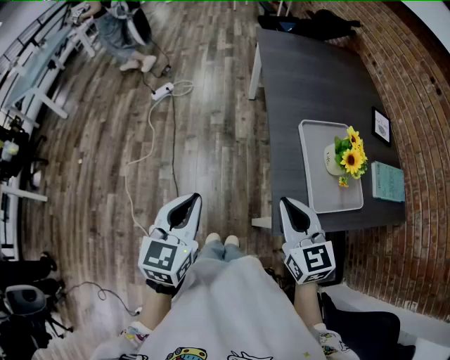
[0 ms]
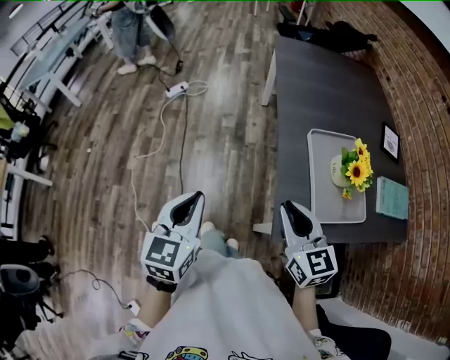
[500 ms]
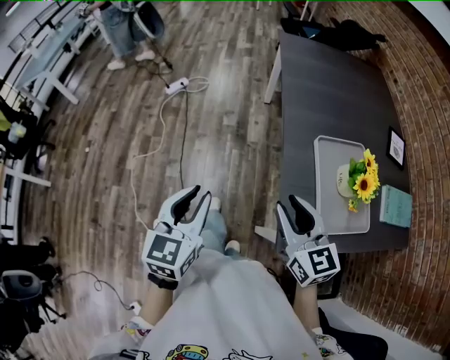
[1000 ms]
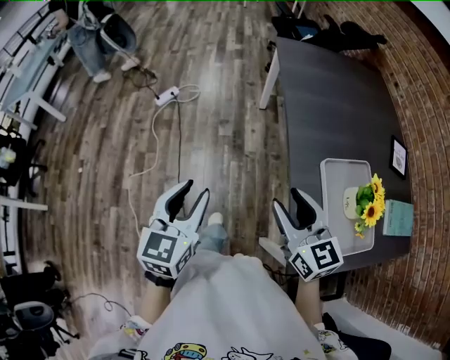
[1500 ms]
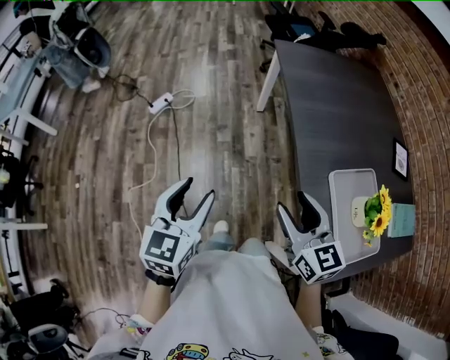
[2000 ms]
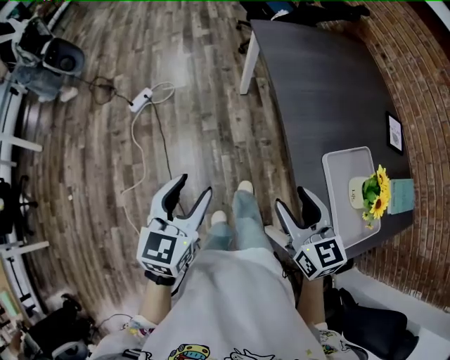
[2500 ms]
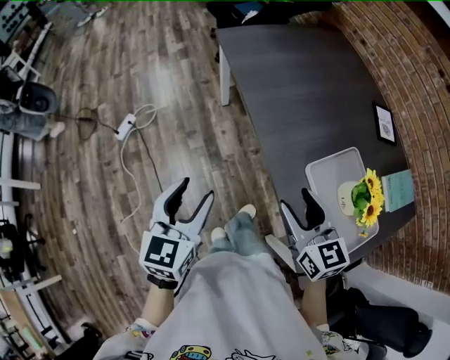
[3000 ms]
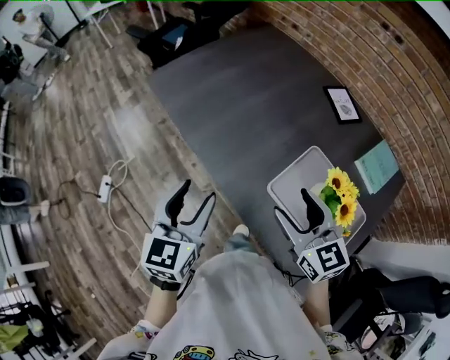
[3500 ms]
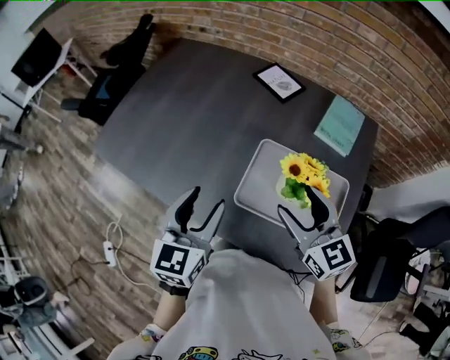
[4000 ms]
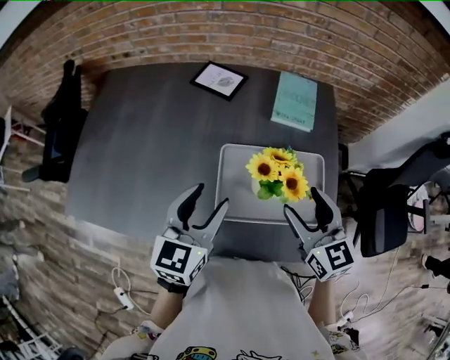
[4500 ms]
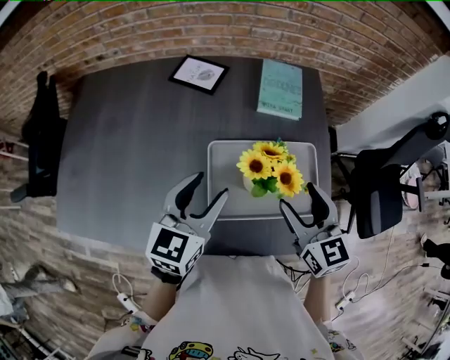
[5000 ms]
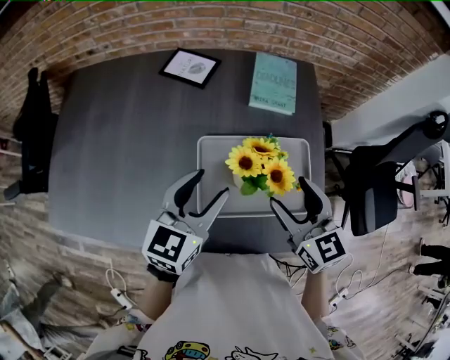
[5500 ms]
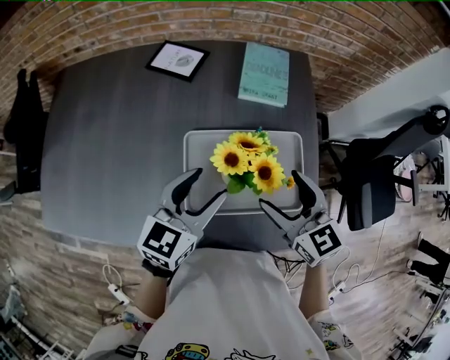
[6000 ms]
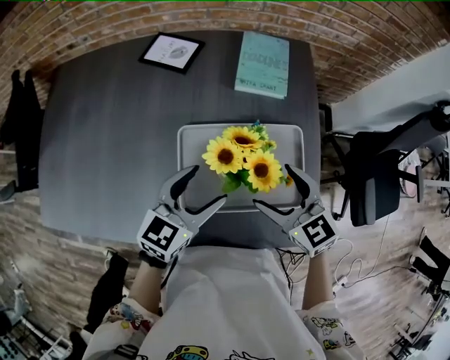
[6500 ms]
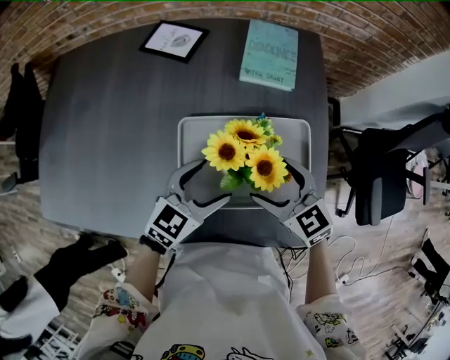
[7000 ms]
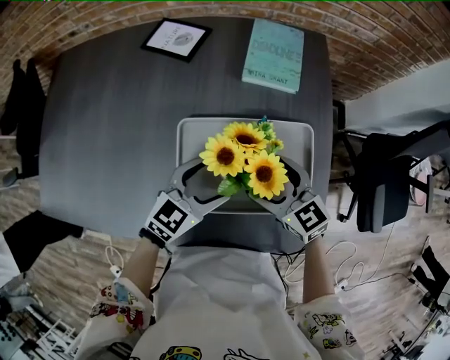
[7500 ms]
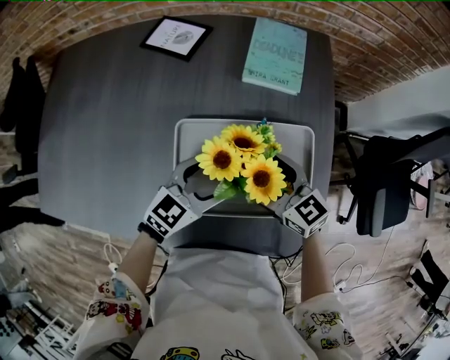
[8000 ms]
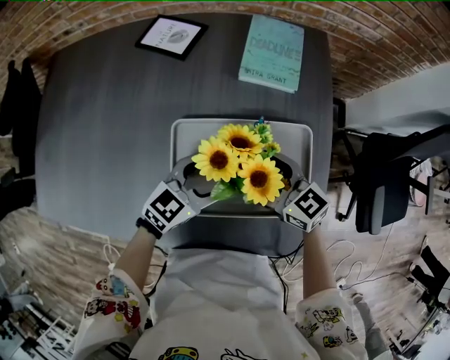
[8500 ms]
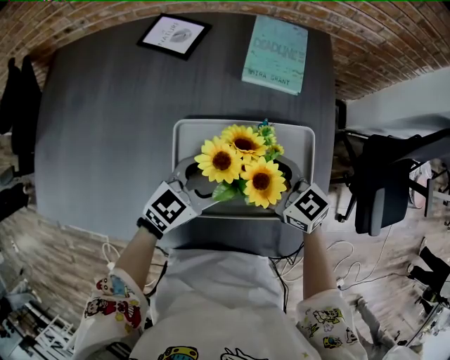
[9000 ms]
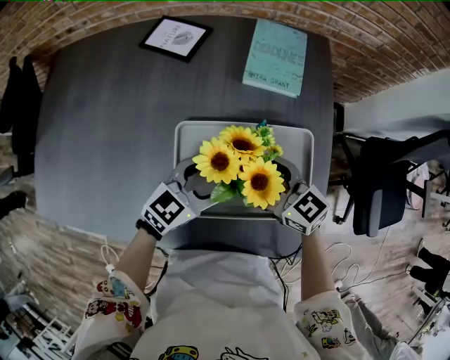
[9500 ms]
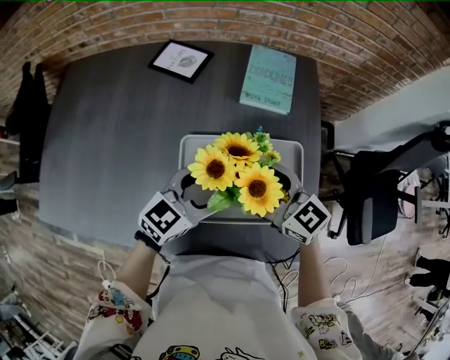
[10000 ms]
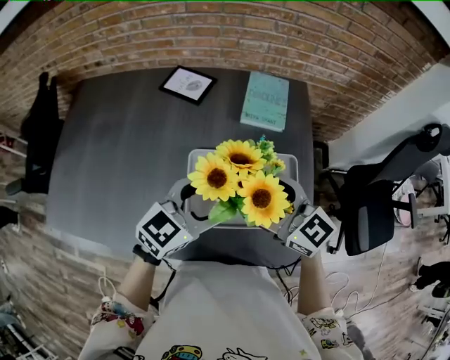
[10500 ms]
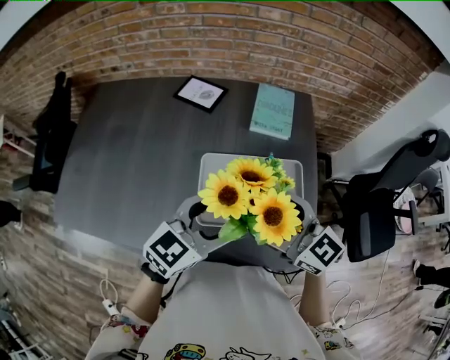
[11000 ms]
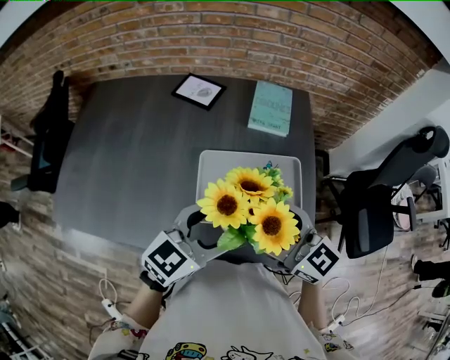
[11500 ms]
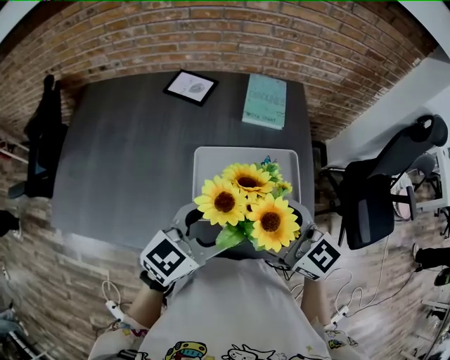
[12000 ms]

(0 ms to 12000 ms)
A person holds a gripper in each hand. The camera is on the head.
0 ms - 2000 ms: The left gripper travels forward by roughly 25 cm, and opens its fingers, while the right gripper shifts some 25 cm forward and to the left, and opens.
2000 ms - 4000 ms: The right gripper shifts by some 30 cm, and rotates some 50 degrees. The left gripper ends up some 40 cm from where it was, and rotates roughly 60 degrees.
4000 ms - 6000 ms: The left gripper shifts by roughly 20 cm, and changes its angle by about 40 degrees. The right gripper changes place by roughly 10 cm, and changes its angle by some 20 degrees.
6000 ms - 8000 ms: Both grippers travel together downward, about 10 cm.
8000 ms - 10000 ms: The two grippers go roughly 5 cm upward.
10000 ms - 12000 ms: The two grippers go about 15 cm backward and upward.

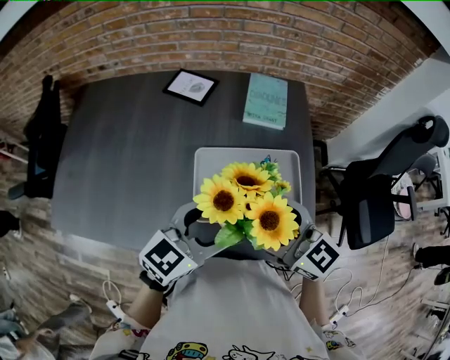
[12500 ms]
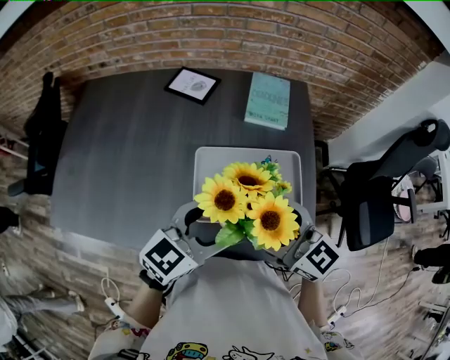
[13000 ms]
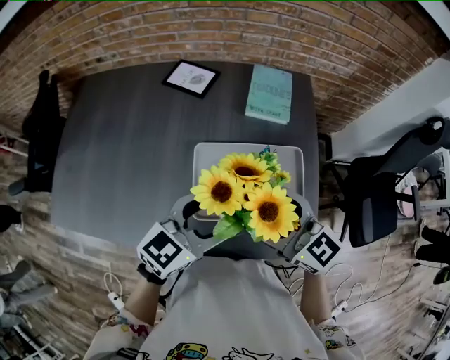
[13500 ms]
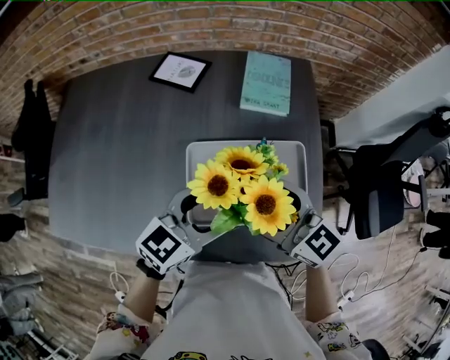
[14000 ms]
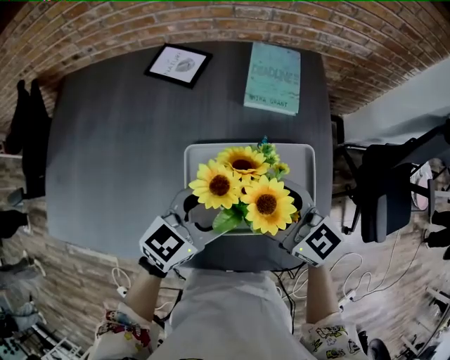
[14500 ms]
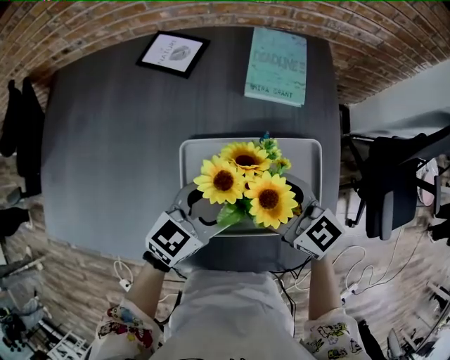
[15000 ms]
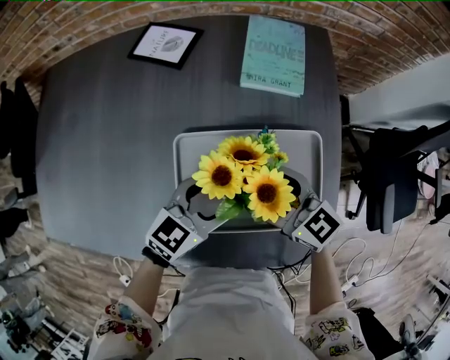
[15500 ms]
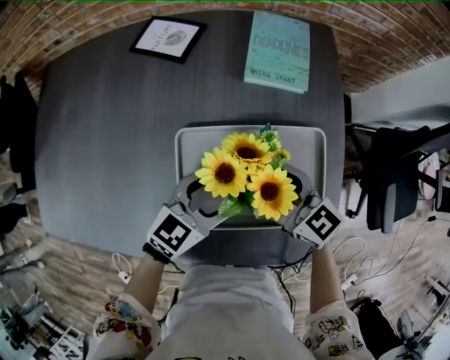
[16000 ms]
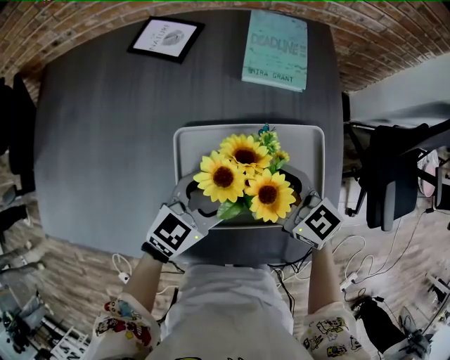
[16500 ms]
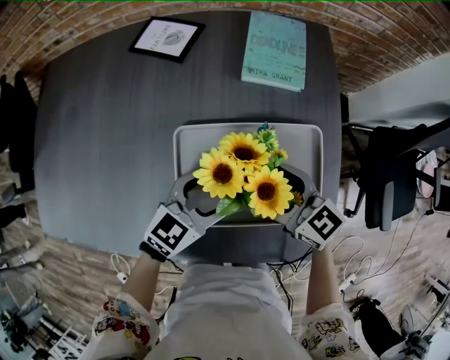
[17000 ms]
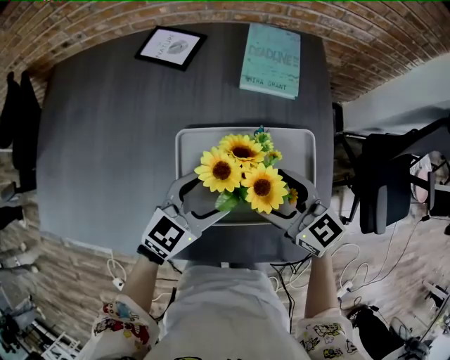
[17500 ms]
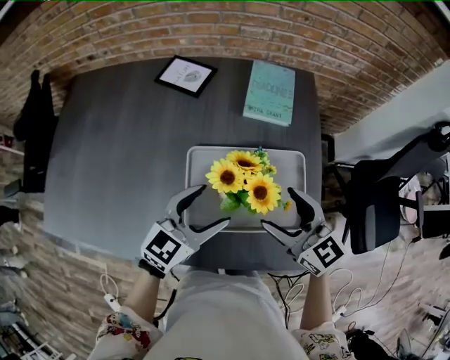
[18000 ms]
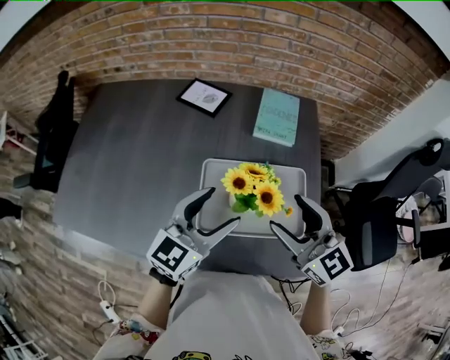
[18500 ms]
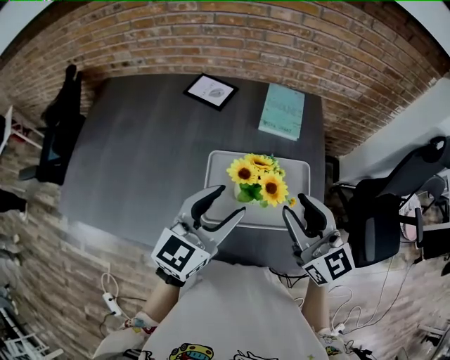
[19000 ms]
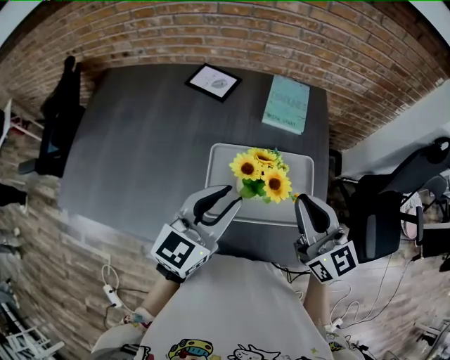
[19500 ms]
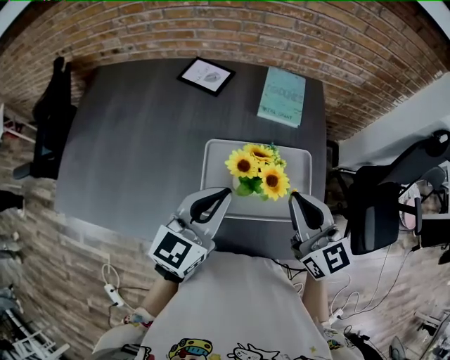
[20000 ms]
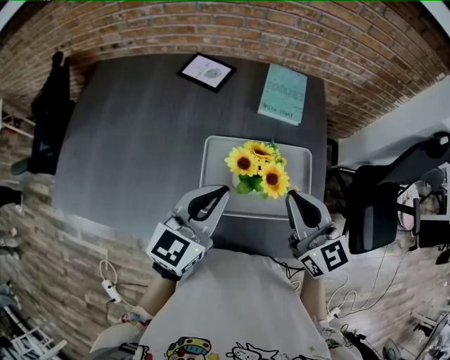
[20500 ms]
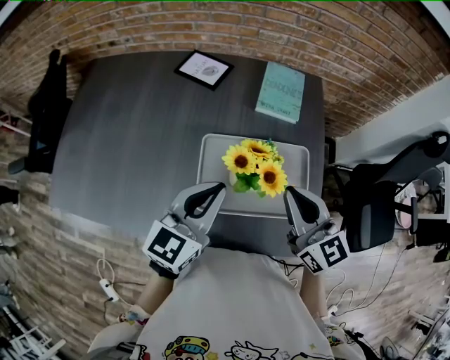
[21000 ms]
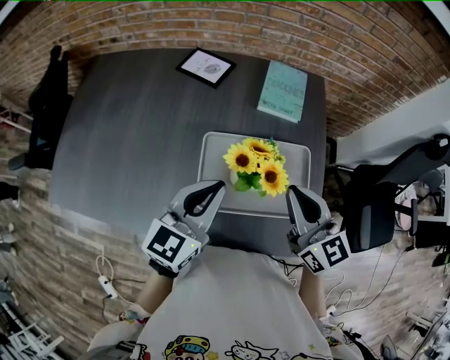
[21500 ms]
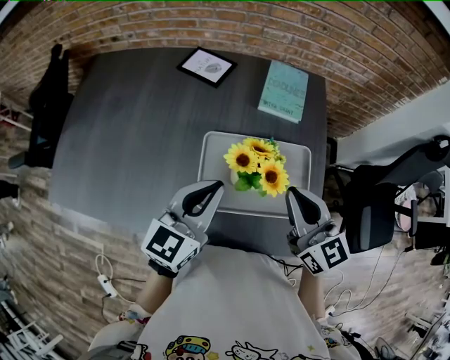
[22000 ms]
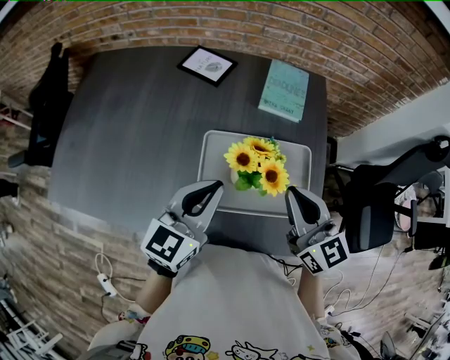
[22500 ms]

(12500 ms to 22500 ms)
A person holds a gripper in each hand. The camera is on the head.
12500 ms - 14500 ms: The two grippers go about 15 cm forward and downward.
14500 ms - 16500 ms: The two grippers go roughly 10 cm downward.
16500 ms - 18500 ms: The two grippers go approximately 20 cm upward. The left gripper turns by approximately 30 degrees. Meanwhile the right gripper turns by roughly 20 degrees.
18500 ms - 20500 ms: The right gripper closes, while the left gripper closes.
20500 ms - 22500 ms: Both grippers stay put.

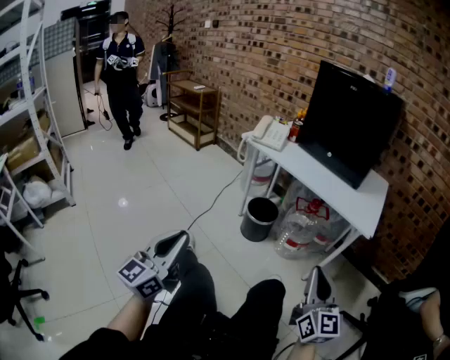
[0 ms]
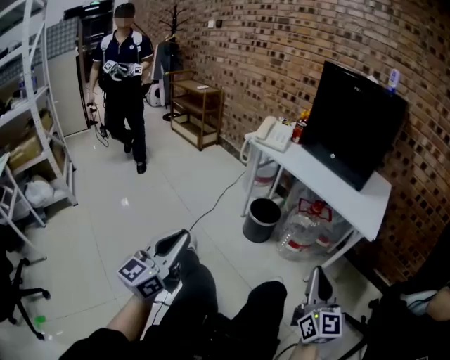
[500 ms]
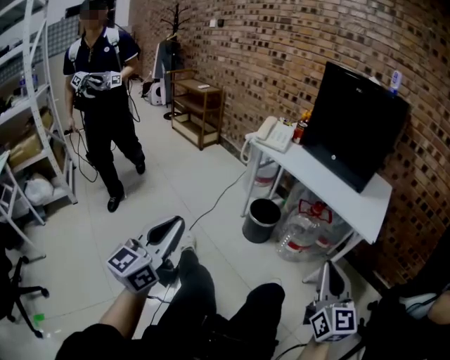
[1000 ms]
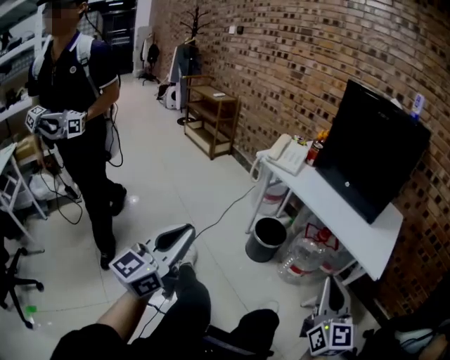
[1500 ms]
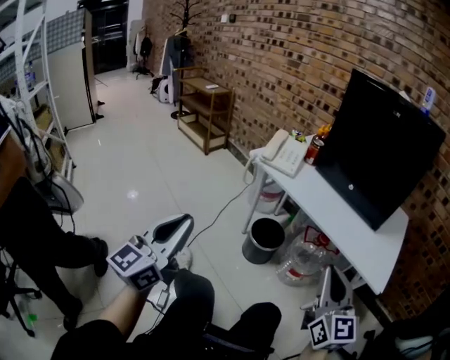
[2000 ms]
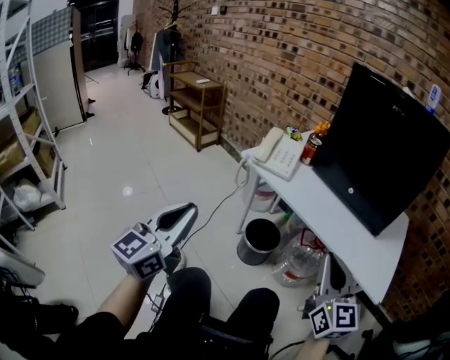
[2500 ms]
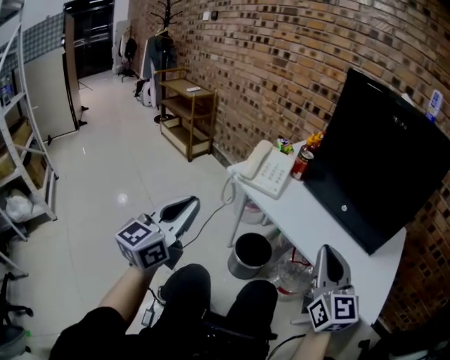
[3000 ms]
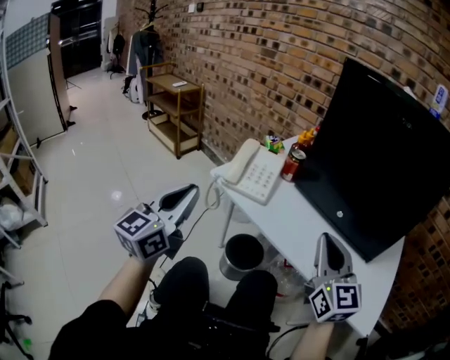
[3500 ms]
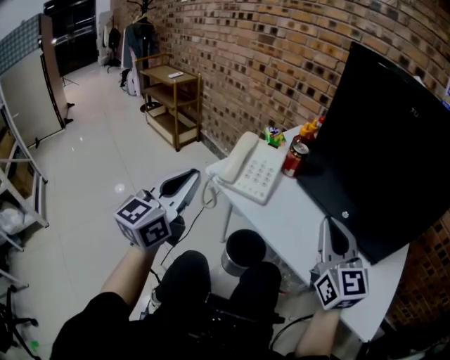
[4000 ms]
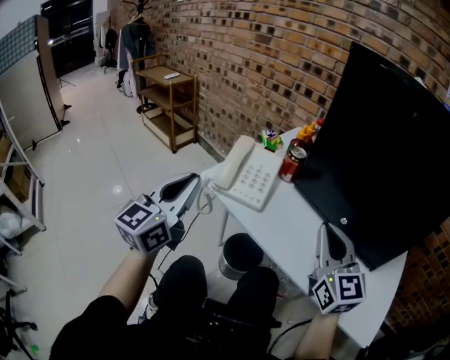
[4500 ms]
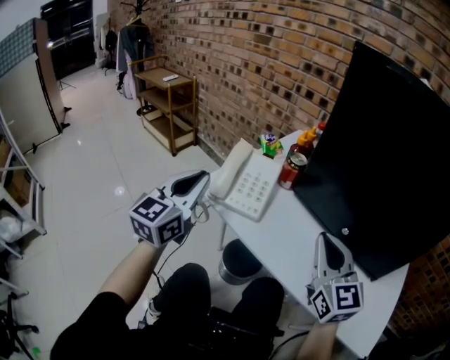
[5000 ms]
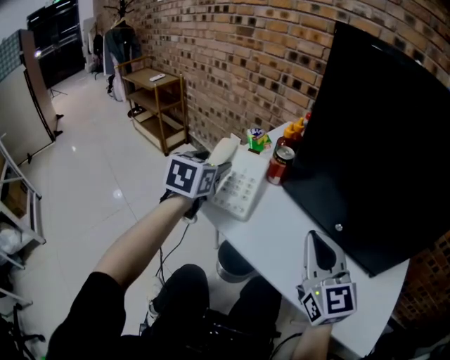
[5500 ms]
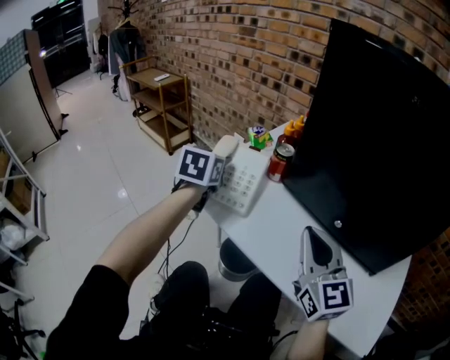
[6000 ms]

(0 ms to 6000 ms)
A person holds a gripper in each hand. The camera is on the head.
0 ms - 2000 ms: The two grippers go about 20 cm forward.
2000 ms - 4000 ms: The two grippers go about 35 cm forward.
4000 ms - 6000 ms: The left gripper heads forward, covering roughly 20 cm, points its fingers approximately 40 degrees further downward, and opens up, while the right gripper shifts by about 5 cm.
